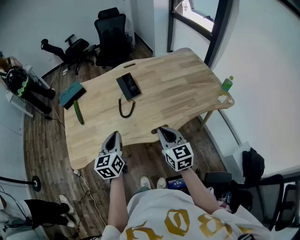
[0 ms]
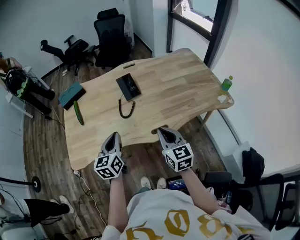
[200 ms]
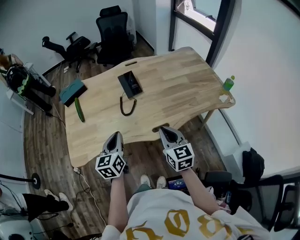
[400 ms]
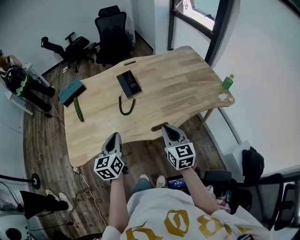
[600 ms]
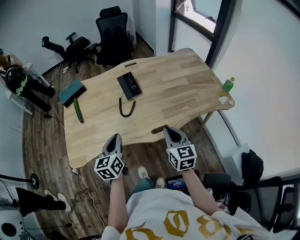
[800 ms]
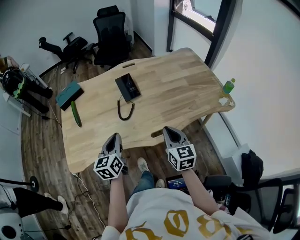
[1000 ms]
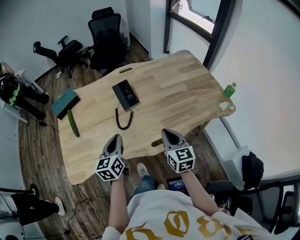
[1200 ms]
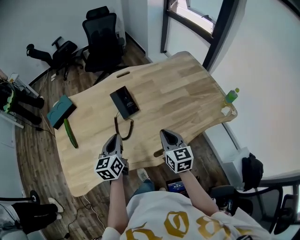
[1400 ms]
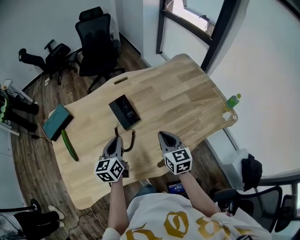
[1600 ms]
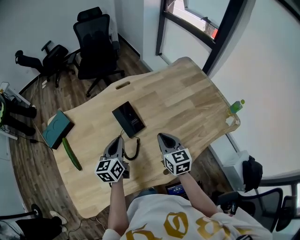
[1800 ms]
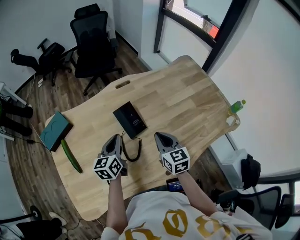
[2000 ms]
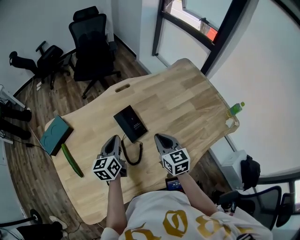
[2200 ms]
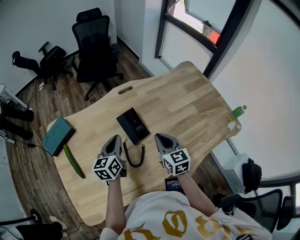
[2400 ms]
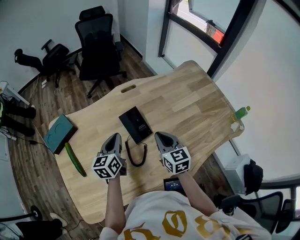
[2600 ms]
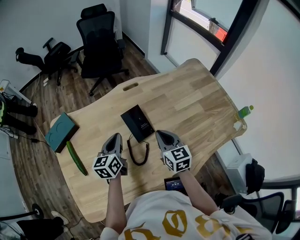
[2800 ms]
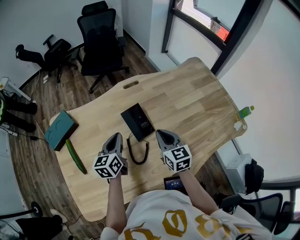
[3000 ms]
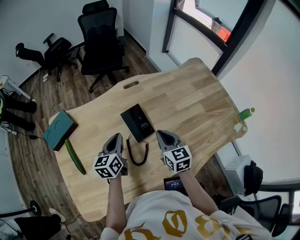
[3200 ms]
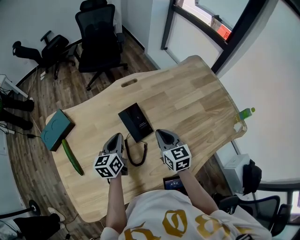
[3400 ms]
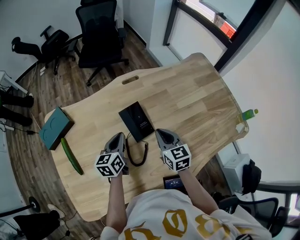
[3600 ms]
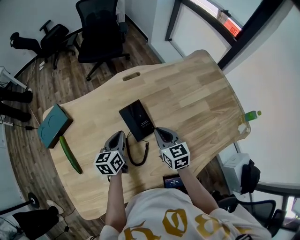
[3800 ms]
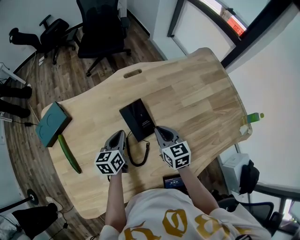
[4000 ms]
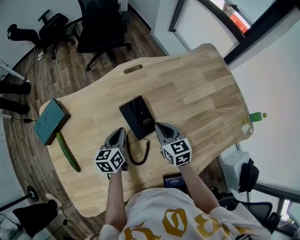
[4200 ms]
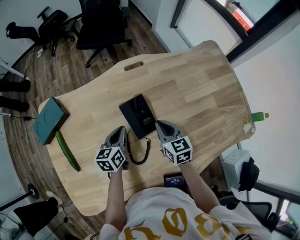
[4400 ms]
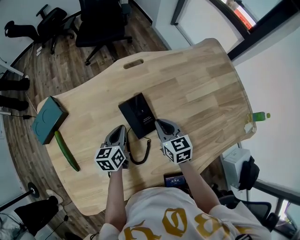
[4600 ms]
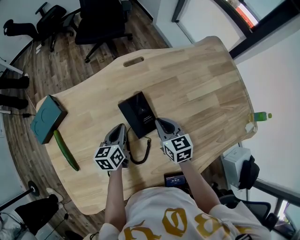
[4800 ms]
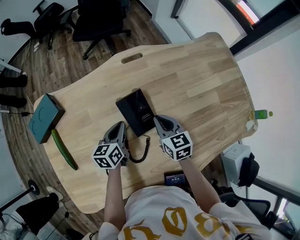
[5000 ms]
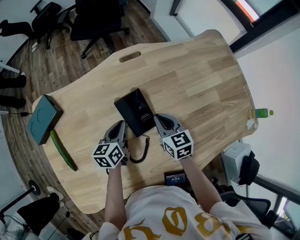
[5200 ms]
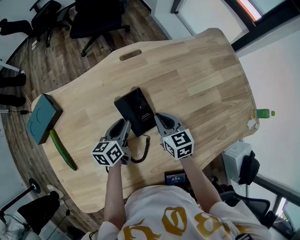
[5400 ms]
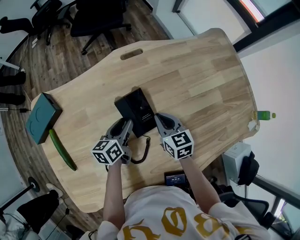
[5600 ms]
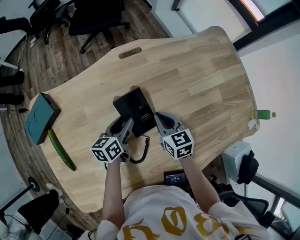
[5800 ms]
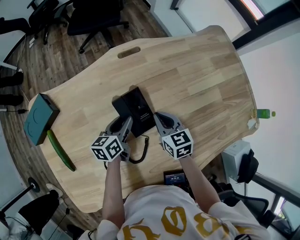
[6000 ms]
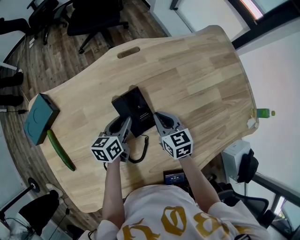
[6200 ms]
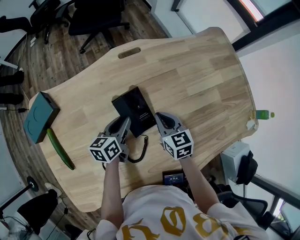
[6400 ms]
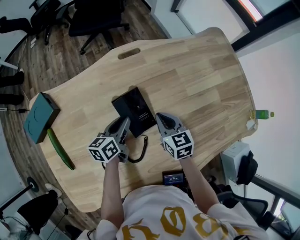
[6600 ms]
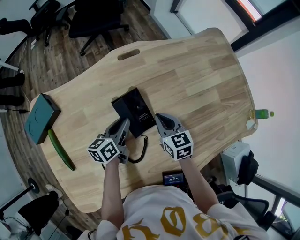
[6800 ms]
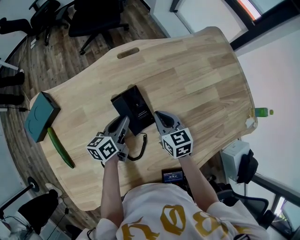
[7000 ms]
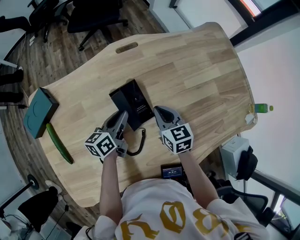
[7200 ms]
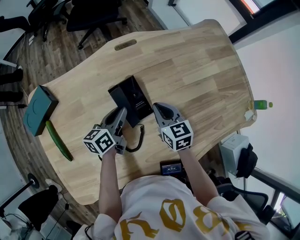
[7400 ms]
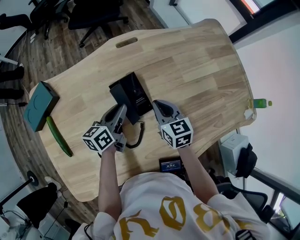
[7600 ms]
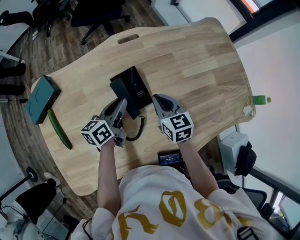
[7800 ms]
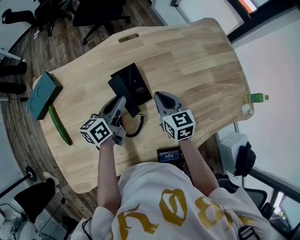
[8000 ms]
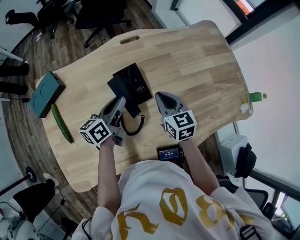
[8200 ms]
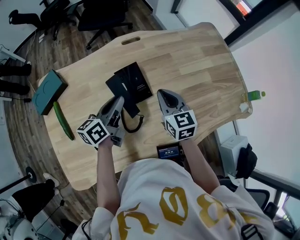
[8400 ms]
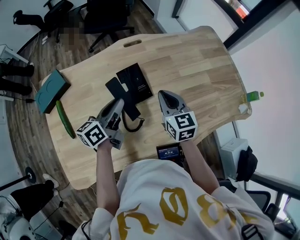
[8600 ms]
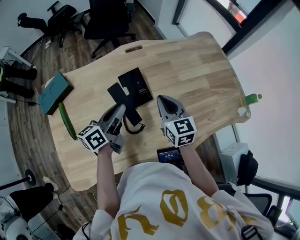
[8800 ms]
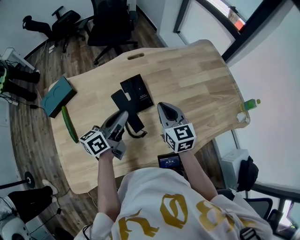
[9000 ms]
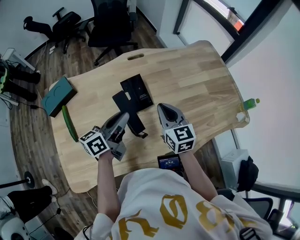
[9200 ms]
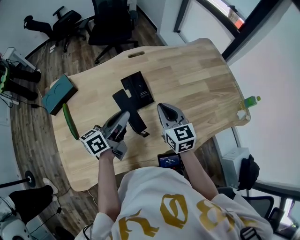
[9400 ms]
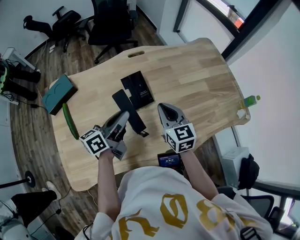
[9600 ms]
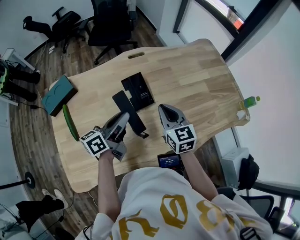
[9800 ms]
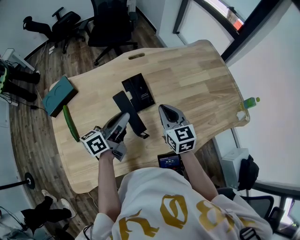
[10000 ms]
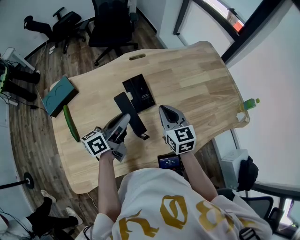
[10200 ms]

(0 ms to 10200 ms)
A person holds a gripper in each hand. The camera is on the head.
0 ms - 1400 ms: The grippers both shift forward by roughly 15 cm.
1400 ms - 3000 ms: The grippers both shift forward and to the left by about 20 cm.
3000 ms - 4400 ms: The left gripper moves downward, roughly 10 cm. Meanwhile the right gripper heads downward and forward, covering about 10 cm.
4400 ms - 5800 ms: The left gripper shifts by approximately 5 cm, and opens its fingers.
5800 ms - 7200 ms: The left gripper closes up.
7200 ms - 8800 ms: The two grippers go about 15 cm upward and backward.
8800 ms - 10200 ms: The grippers stay close to where they were, moving slightly.

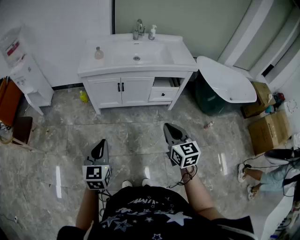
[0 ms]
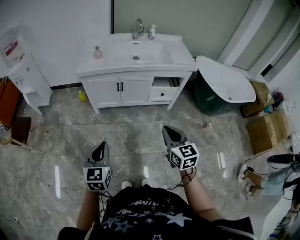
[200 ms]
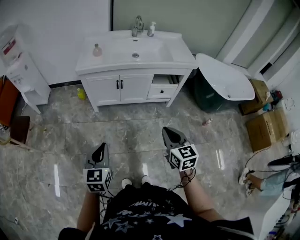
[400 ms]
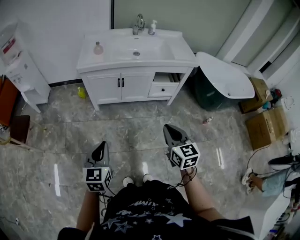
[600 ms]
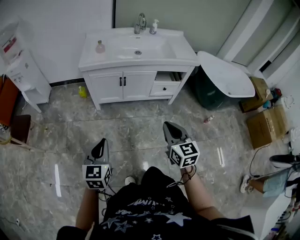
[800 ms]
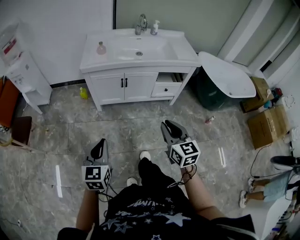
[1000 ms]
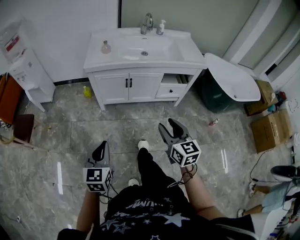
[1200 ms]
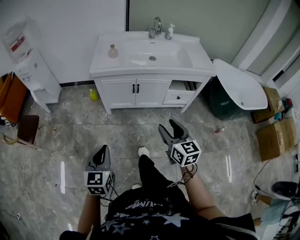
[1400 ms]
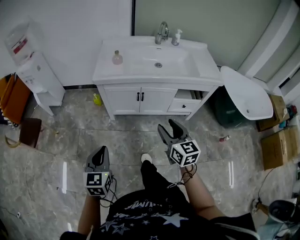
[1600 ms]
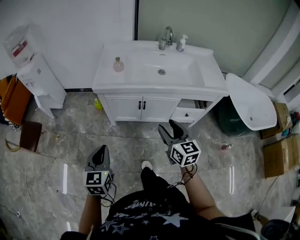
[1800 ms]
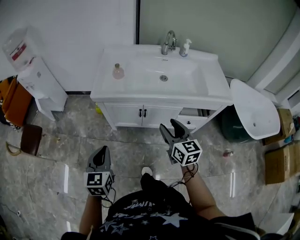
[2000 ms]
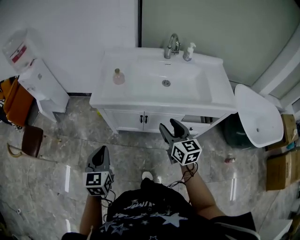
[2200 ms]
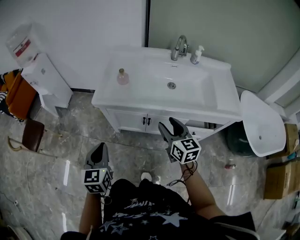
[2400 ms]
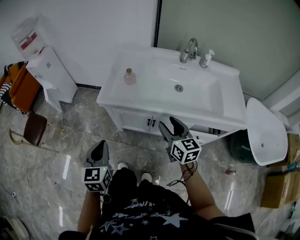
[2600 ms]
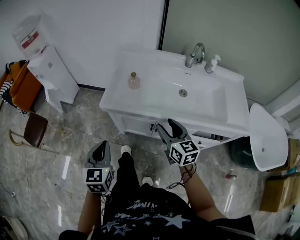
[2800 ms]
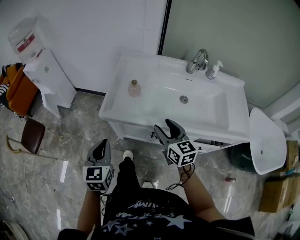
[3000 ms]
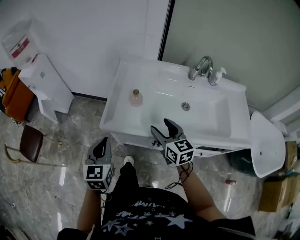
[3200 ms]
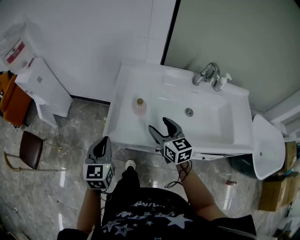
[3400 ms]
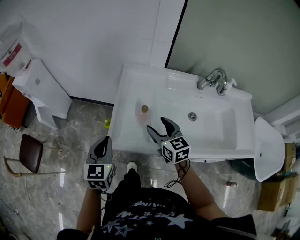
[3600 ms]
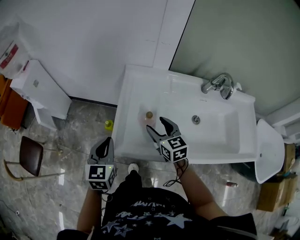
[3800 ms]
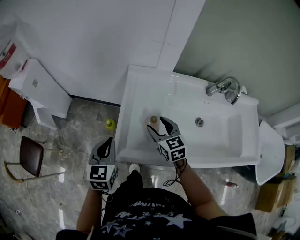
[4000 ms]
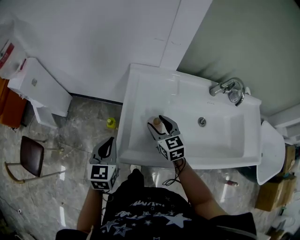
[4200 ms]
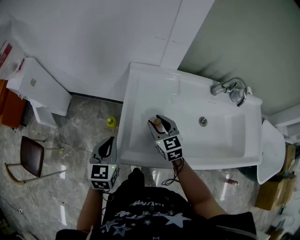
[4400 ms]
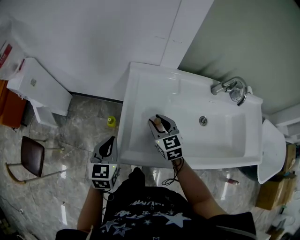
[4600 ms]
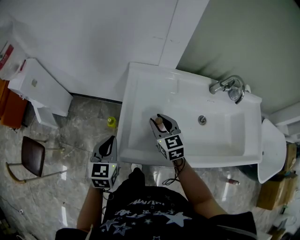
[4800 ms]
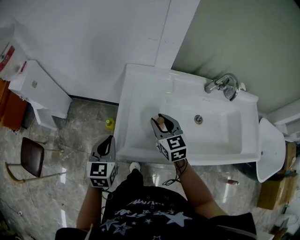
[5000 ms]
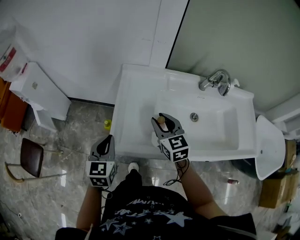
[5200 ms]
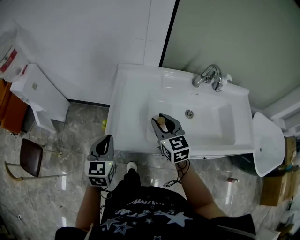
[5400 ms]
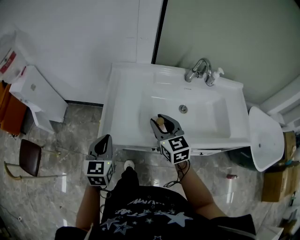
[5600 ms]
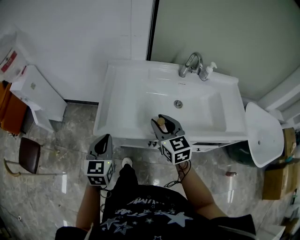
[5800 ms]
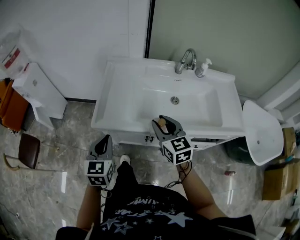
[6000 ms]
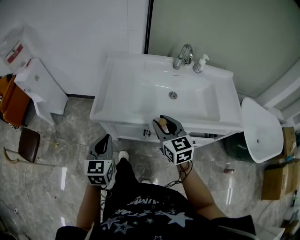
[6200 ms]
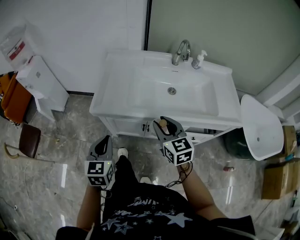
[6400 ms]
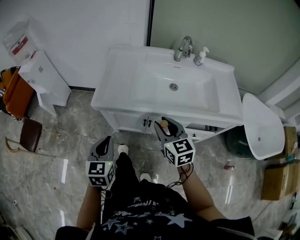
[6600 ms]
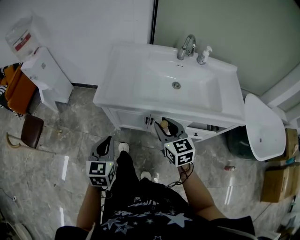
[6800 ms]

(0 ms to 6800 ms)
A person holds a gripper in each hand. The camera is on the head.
0 ms - 1400 ms: Both grippers move to the left and forward, roughly 10 cm. The right gripper opens up.
1400 ms - 2800 ms: The two grippers go some 35 cm forward.
2800 ms - 4000 ms: The grippers both shift forward by about 30 cm.
4000 ms - 5400 ms: The right gripper goes approximately 10 cm upward, backward and to the right, and closes its fingers. Meanwhile the left gripper goes approximately 5 cm backward.
5400 ms - 6800 ms: The two grippers go roughly 25 cm backward.

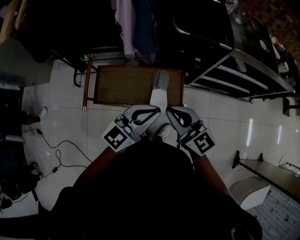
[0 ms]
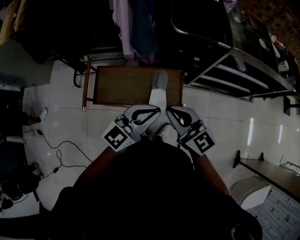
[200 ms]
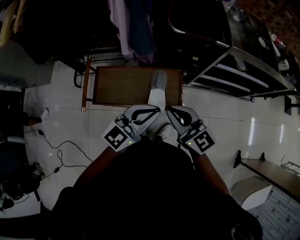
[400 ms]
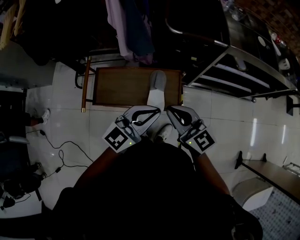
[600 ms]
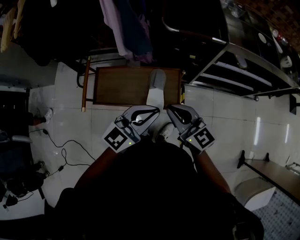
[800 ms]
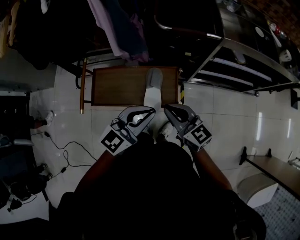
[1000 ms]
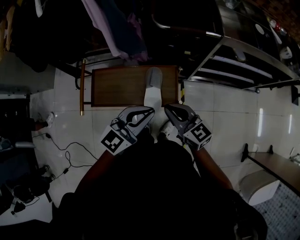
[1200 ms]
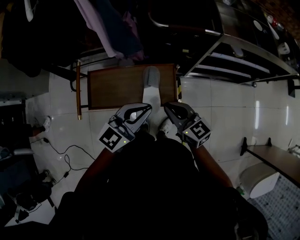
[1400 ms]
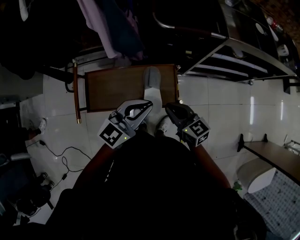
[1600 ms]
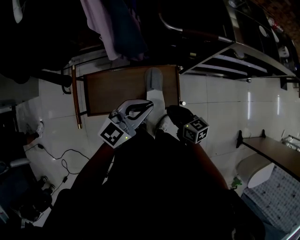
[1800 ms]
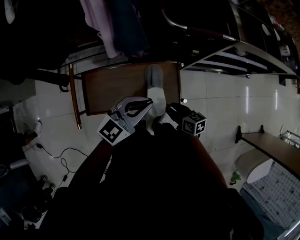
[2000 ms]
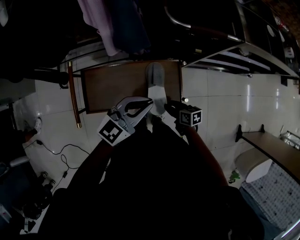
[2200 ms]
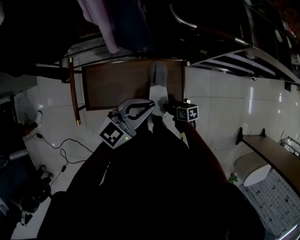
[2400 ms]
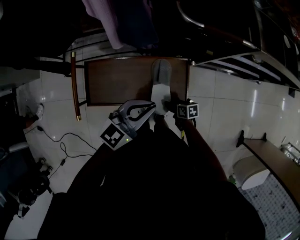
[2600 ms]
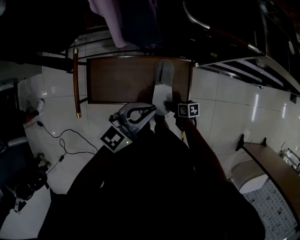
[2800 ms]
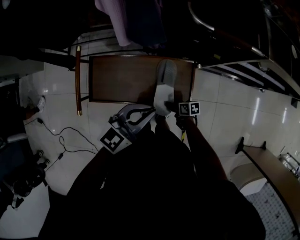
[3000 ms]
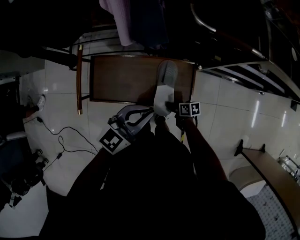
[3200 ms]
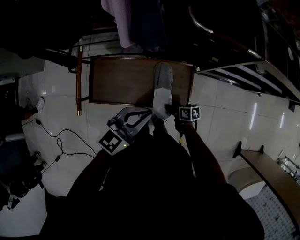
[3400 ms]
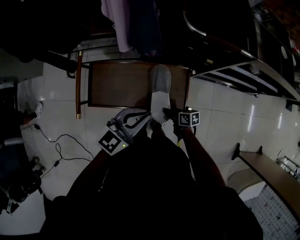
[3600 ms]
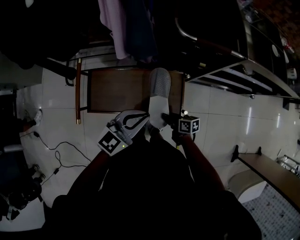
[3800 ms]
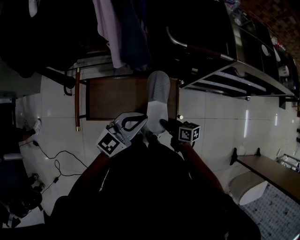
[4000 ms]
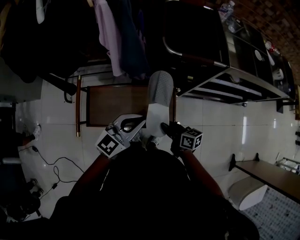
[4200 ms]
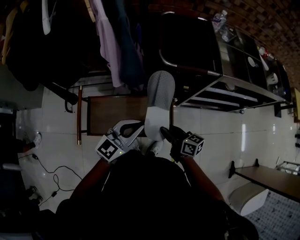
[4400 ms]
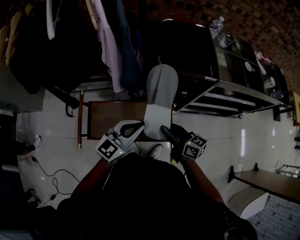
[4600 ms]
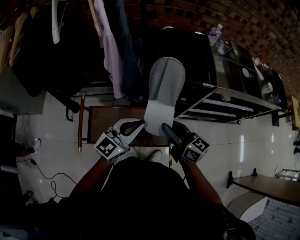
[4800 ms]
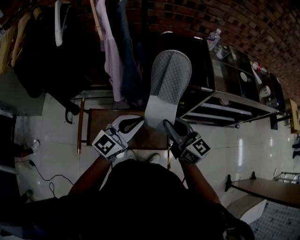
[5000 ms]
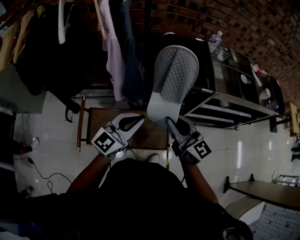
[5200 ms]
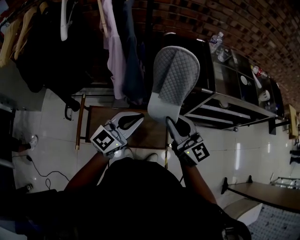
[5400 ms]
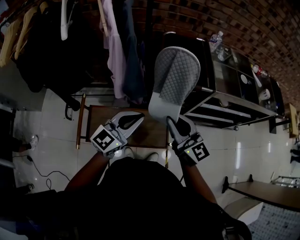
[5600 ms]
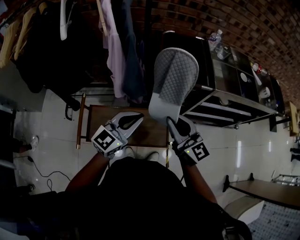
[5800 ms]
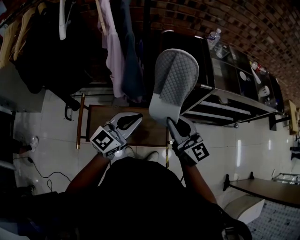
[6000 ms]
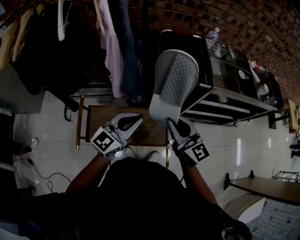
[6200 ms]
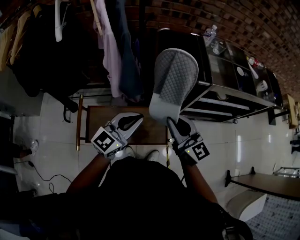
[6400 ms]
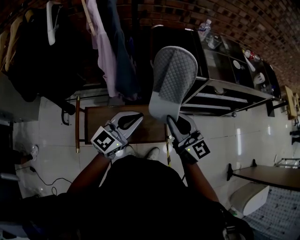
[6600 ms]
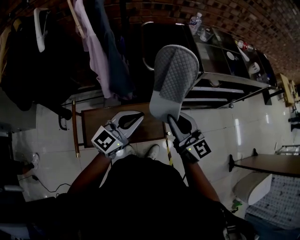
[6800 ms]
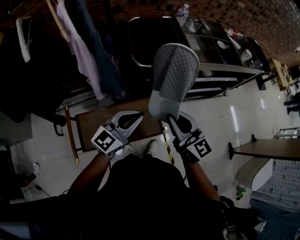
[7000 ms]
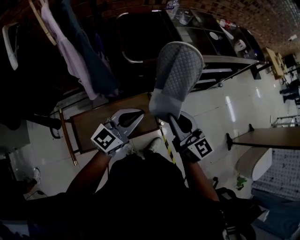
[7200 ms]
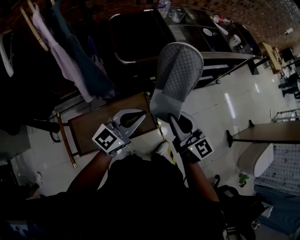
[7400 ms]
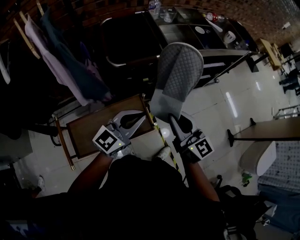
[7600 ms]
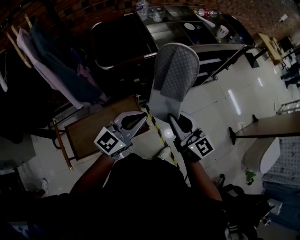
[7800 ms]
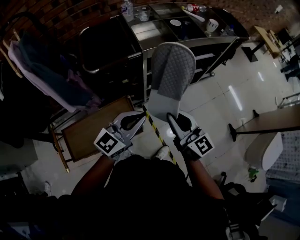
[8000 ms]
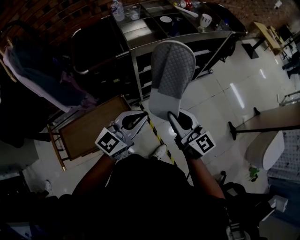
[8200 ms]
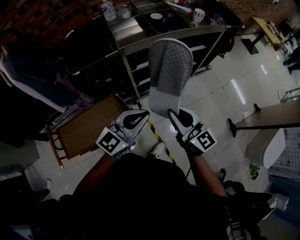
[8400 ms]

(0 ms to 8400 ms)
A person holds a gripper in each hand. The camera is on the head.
0 ms - 1400 ms: The right gripper heads downward and to the right, covering approximately 10 cm. The left gripper ends up roughly 5 cm from where it was.
1400 ms - 2800 ms: The right gripper heads downward, covering about 35 cm, tips its fingers downward by roughly 30 degrees, and opens up; the left gripper shifts about 10 cm downward, to the left and forward.
2800 ms - 4200 ms: The left gripper heads upward, covering about 5 cm. The right gripper heads upward, covering approximately 25 cm, swivels about 30 degrees, and closes.
4200 ms - 5600 ms: The right gripper is displaced upward by about 30 cm, and twists about 50 degrees counterclockwise, seen from behind. The left gripper heads upward and forward, covering about 10 cm.
5600 ms - 7000 ms: The right gripper shifts by some 5 cm, while the left gripper ends up roughly 5 cm from where it was.
7000 ms - 8400 ms: The two grippers go approximately 35 cm to the right.
